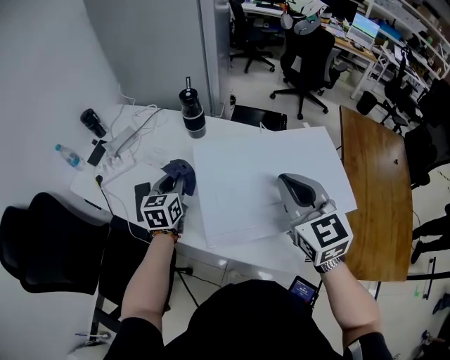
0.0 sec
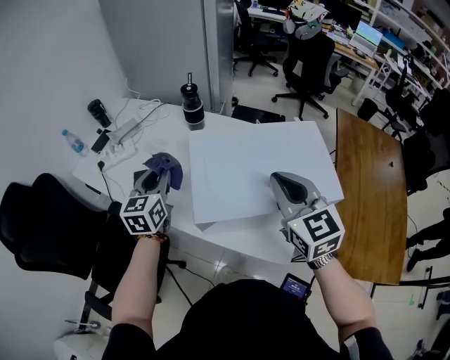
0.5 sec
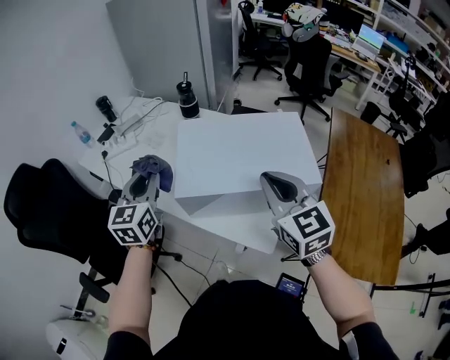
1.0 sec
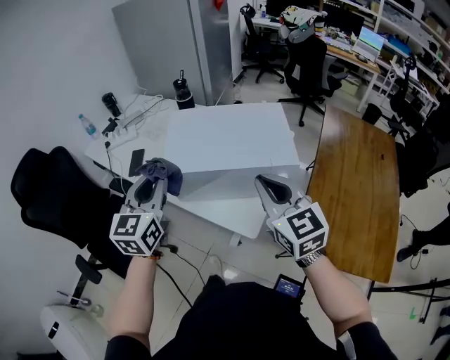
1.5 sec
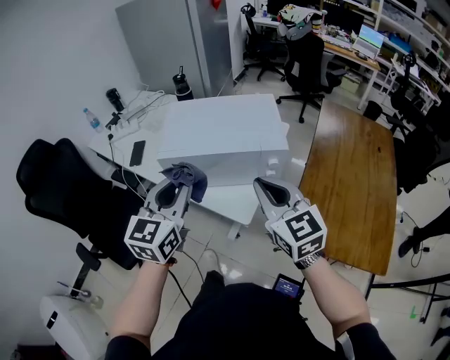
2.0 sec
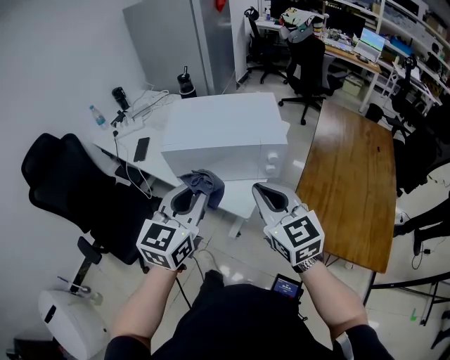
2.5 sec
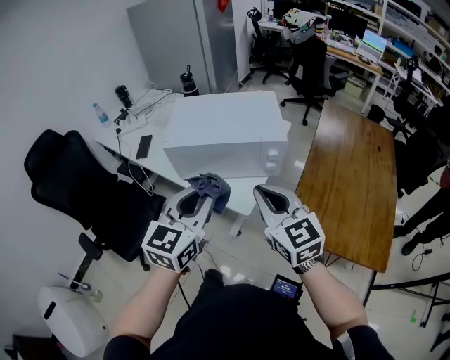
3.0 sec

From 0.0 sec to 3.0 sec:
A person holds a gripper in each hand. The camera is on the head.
From 0.0 sec to 1.5 sec: The right gripper moves backward and to the right, some 20 cm; the left gripper heads backward and upward, covering roughly 35 cm, and turns by some 20 degrees.
From 1.5 sec to 3.0 sec: The right gripper travels backward by approximately 15 cm. The left gripper shifts about 20 cm backward and to the right.

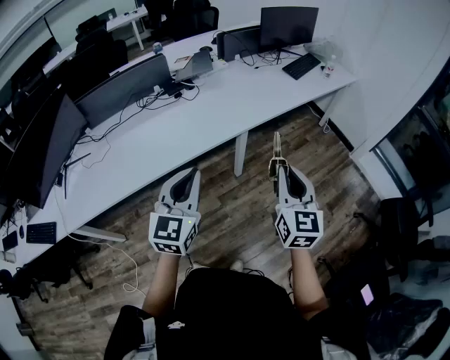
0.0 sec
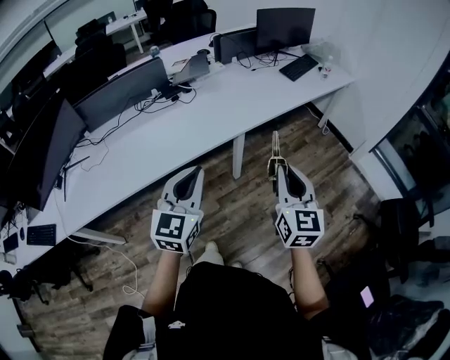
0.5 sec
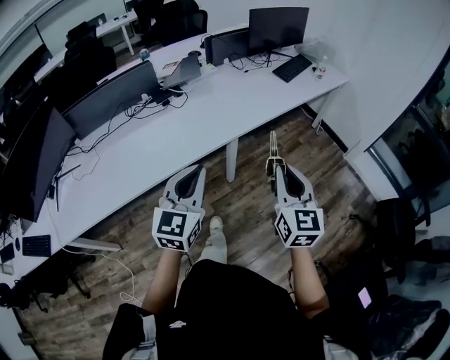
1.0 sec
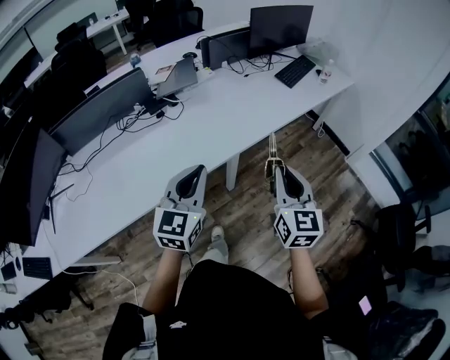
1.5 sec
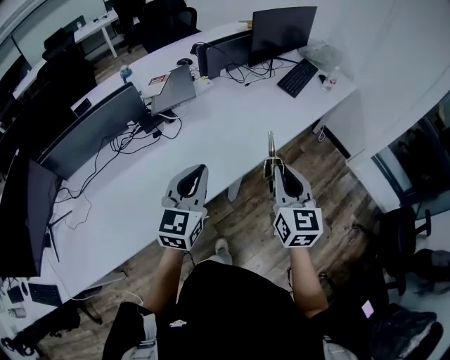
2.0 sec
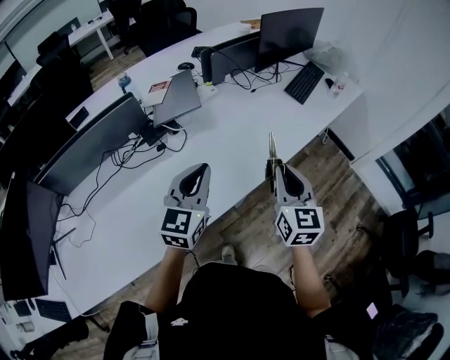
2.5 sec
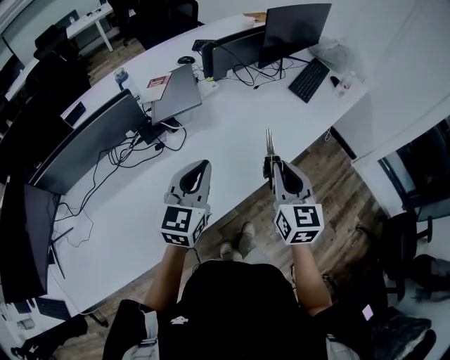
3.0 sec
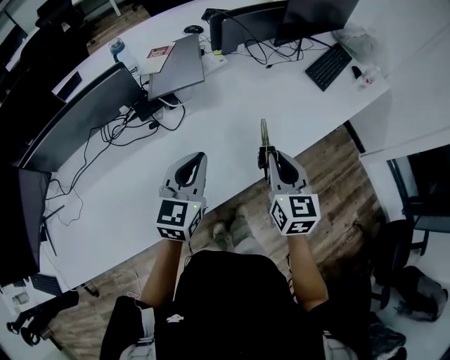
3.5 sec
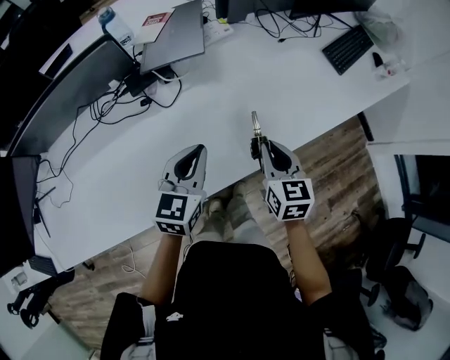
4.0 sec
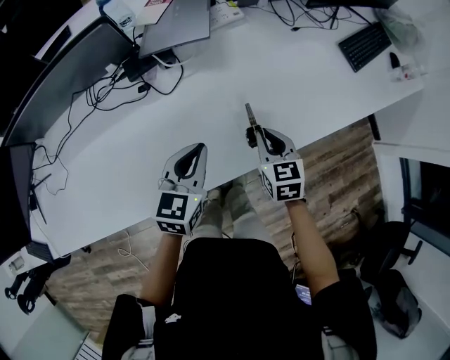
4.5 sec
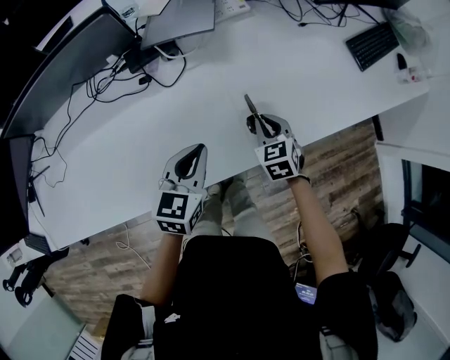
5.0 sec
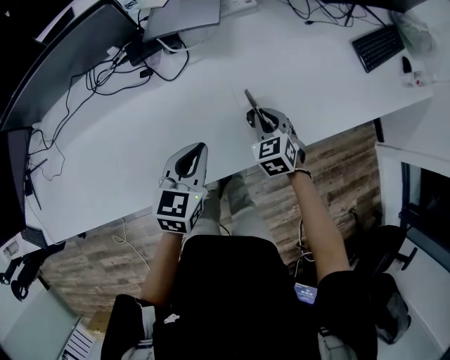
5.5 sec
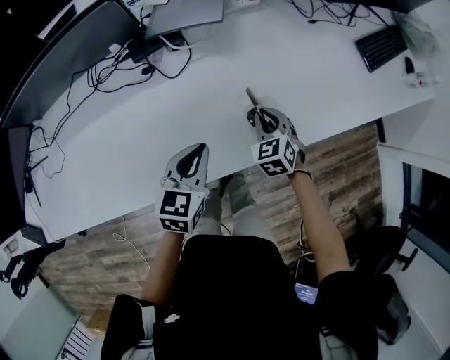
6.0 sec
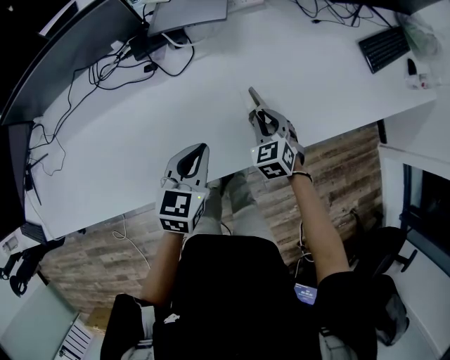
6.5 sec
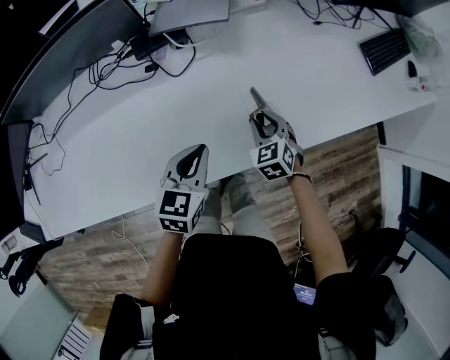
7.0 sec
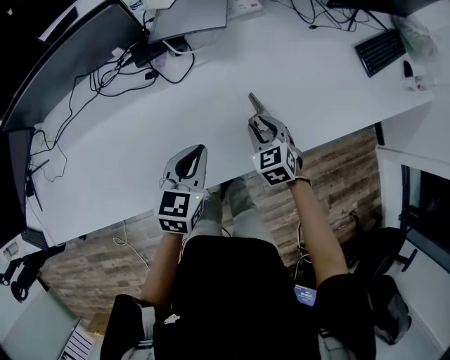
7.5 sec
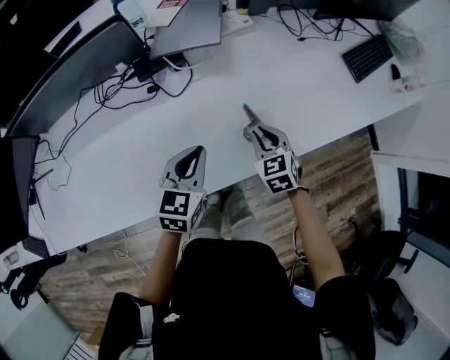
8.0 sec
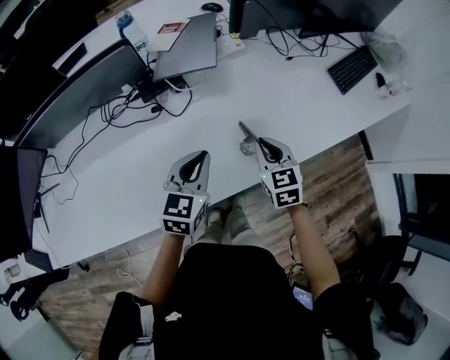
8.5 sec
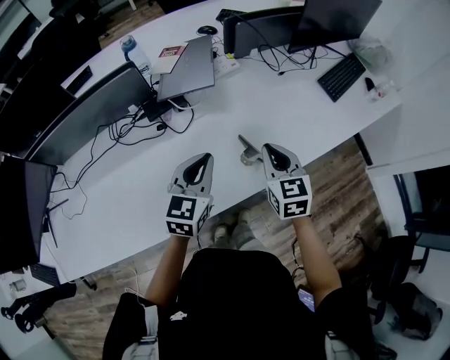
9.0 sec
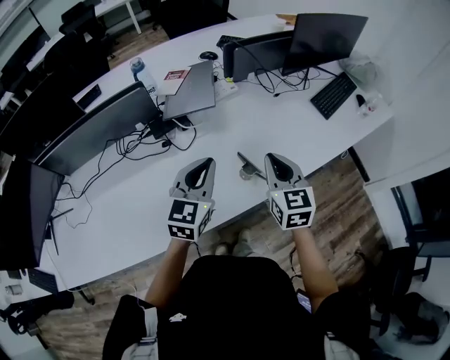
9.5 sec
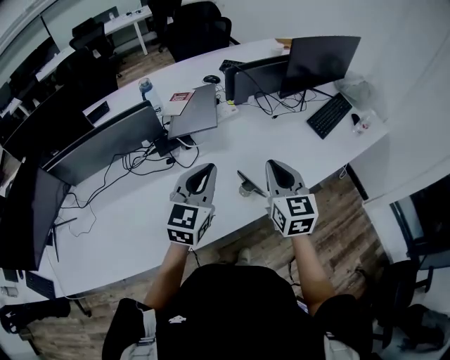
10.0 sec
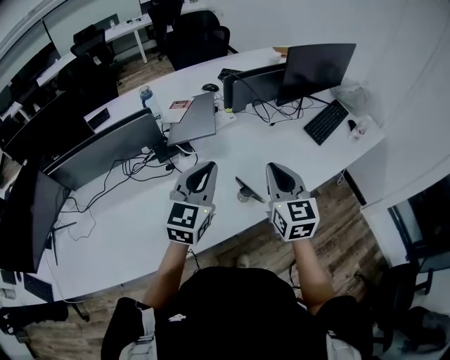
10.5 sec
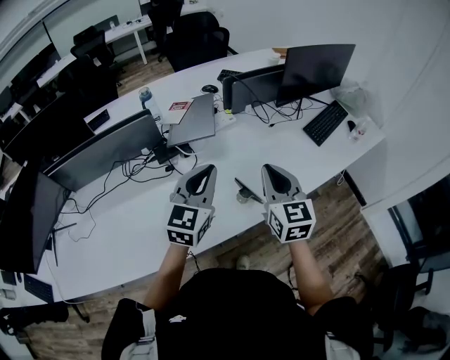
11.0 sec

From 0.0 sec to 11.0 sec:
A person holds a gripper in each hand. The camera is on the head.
From 0.0 sec to 2.0 sec: Both grippers travel together forward, approximately 30 cm.
From 2.0 sec to 3.5 sec: Both grippers travel together forward and downward, approximately 20 cm.
From 3.5 sec to 5.5 sec: The right gripper is displaced downward and forward by approximately 25 cm, and rotates approximately 50 degrees. The left gripper shifts about 15 cm downward, and swivels about 20 degrees.
From 5.5 sec to 7.5 sec: The grippers make only small movements.
From 7.5 sec to 9.0 sec: The right gripper heads upward, covering roughly 20 cm, rotates some 30 degrees, and closes; the left gripper goes some 15 cm upward.
From 9.0 sec to 11.0 sec: The two grippers go about 15 cm upward.

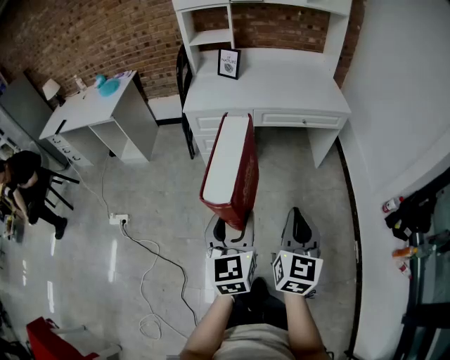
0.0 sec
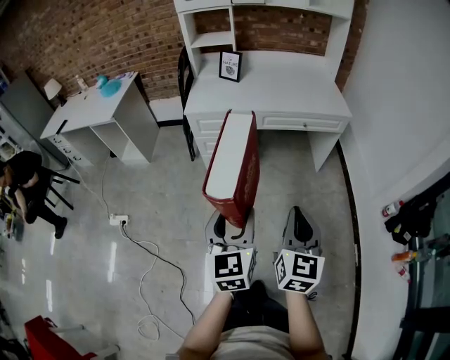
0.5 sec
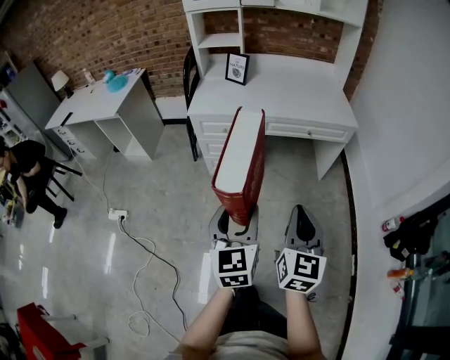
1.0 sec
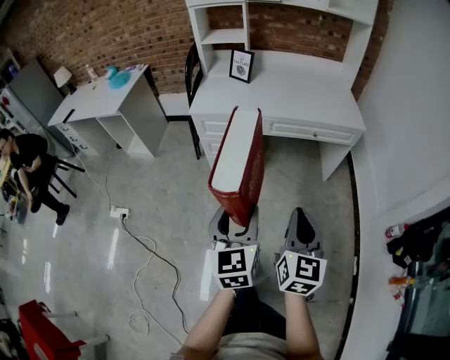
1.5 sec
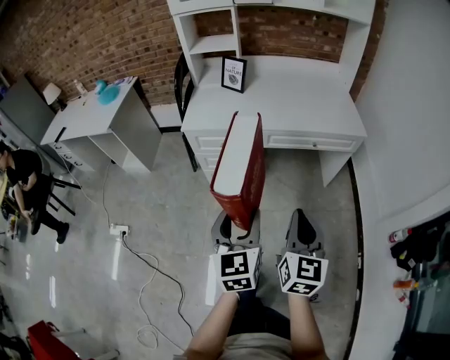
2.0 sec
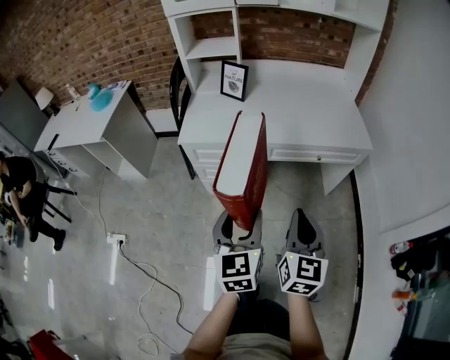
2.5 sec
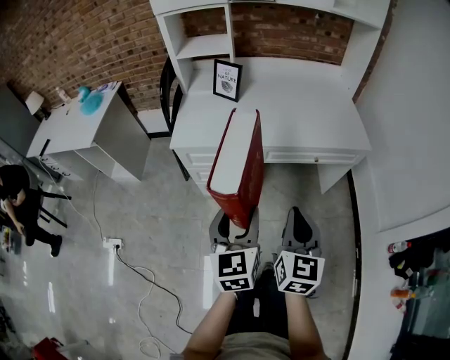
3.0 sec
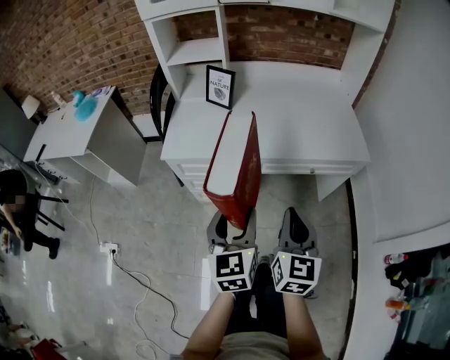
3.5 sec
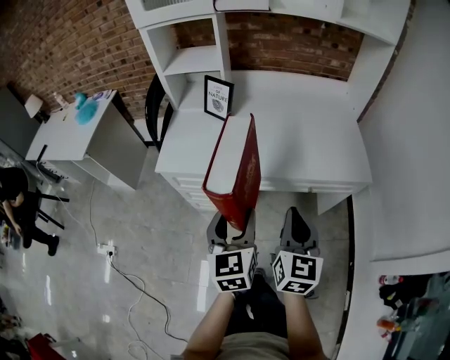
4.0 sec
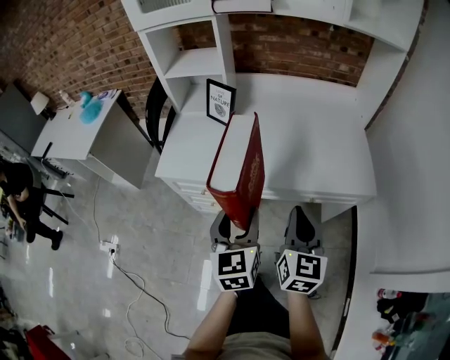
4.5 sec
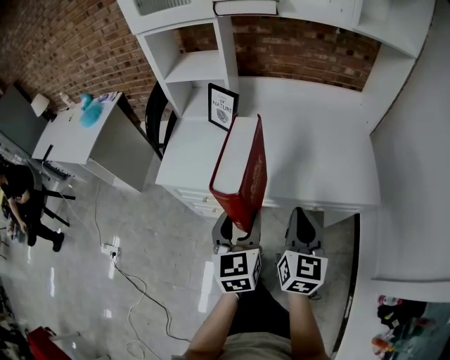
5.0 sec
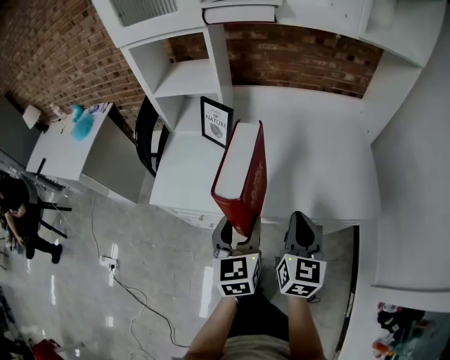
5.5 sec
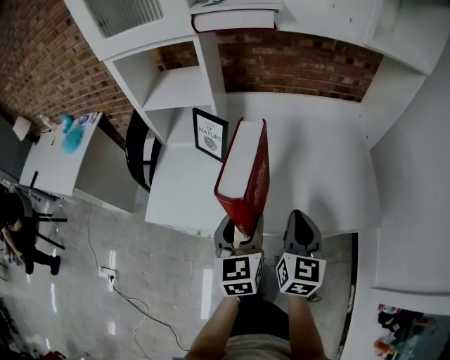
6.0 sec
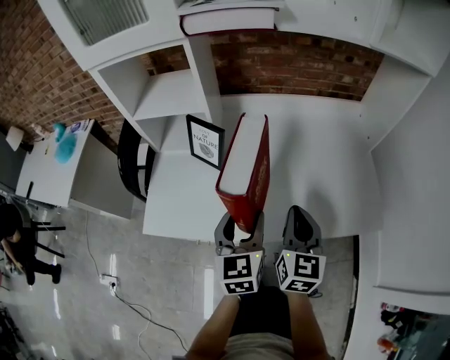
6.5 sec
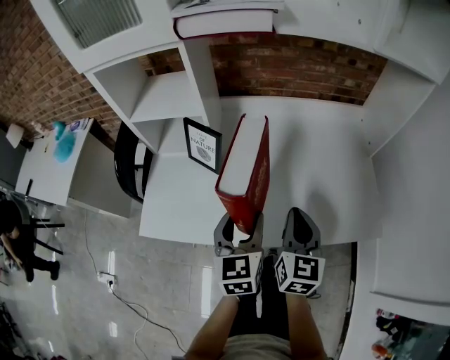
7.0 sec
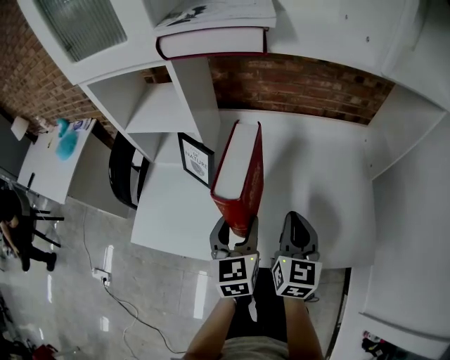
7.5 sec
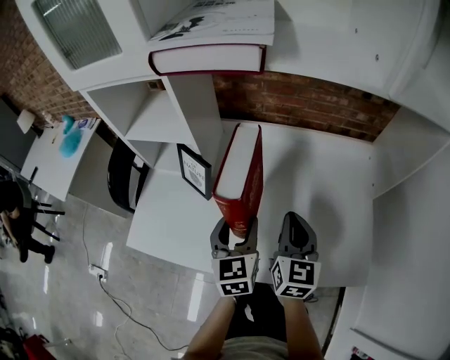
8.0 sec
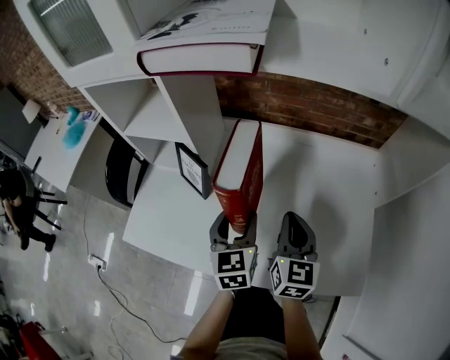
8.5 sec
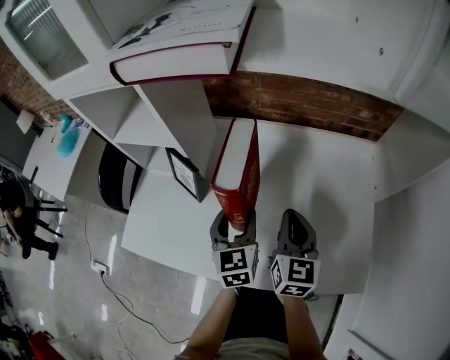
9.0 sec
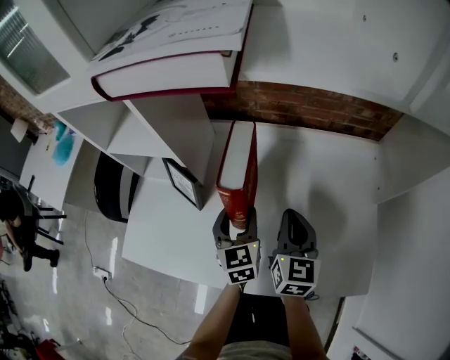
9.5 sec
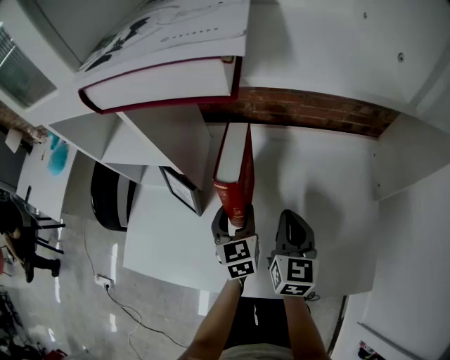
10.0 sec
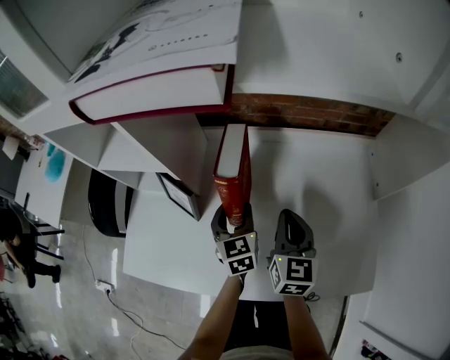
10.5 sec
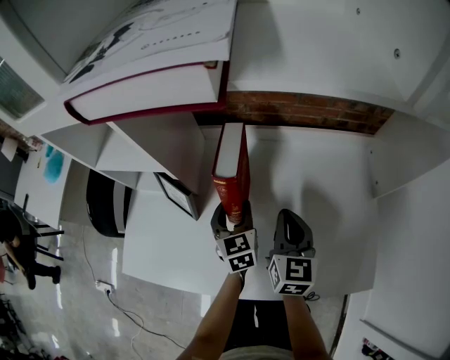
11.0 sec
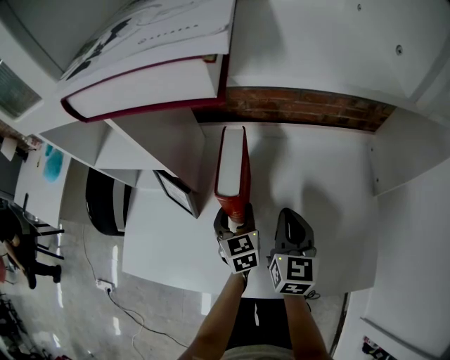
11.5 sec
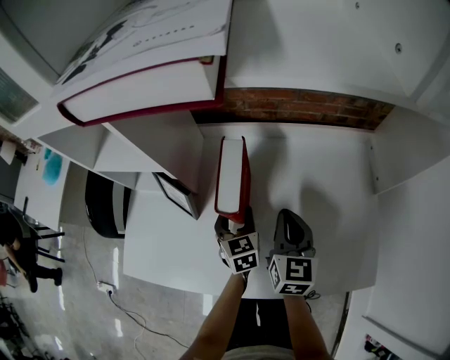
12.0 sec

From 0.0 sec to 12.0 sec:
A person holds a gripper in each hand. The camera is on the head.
From 0.0 sec to 2.0 sec: The grippers both shift forward by approximately 15 cm.
From 2.0 sec to 4.0 sec: Both grippers travel together forward, roughly 30 cm.
From 4.0 sec to 6.0 sec: Both grippers move forward, about 20 cm.
From 6.0 sec to 8.0 sec: The grippers both shift forward by approximately 20 cm.
From 8.0 sec to 10.0 sec: The right gripper heads forward, covering some 10 cm; the left gripper heads forward and downward, covering approximately 15 cm.
From 10.0 sec to 12.0 sec: The left gripper goes approximately 5 cm downward.

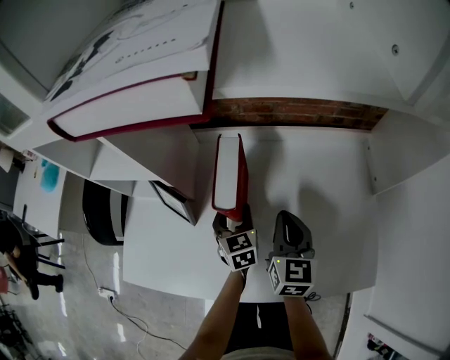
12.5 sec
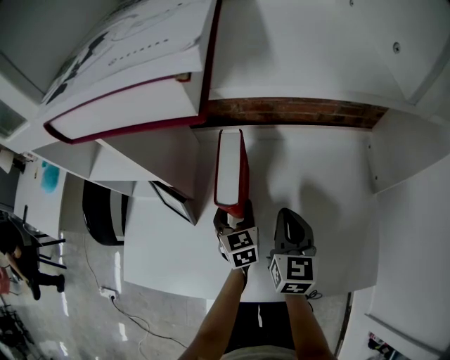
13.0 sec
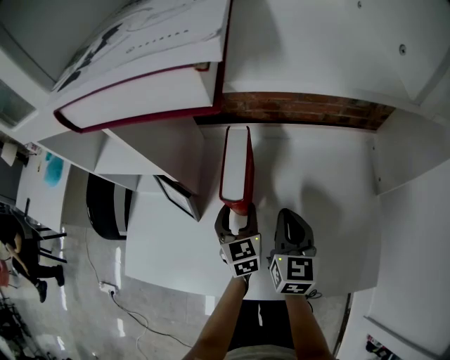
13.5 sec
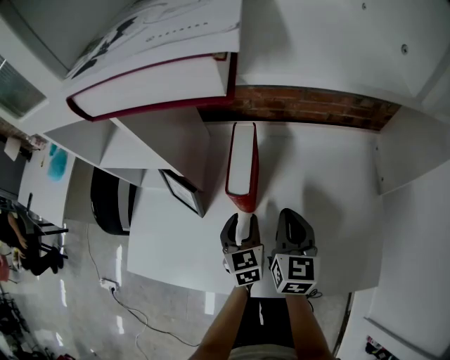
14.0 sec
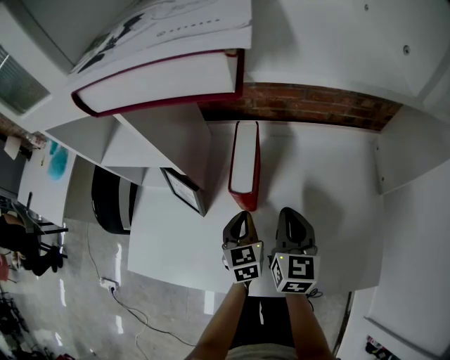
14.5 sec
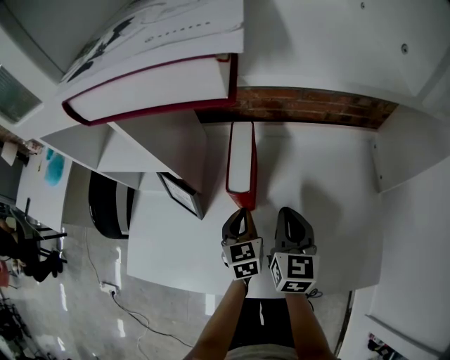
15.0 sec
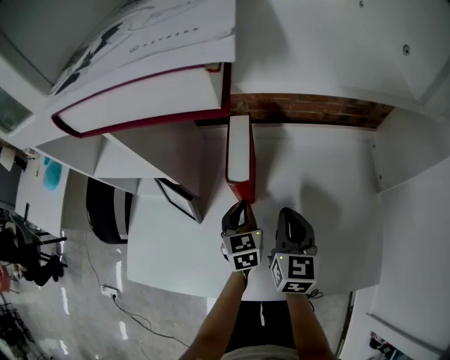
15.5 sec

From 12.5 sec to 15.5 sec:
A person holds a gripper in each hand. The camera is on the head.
From 12.5 sec to 14.0 sec: The left gripper heads backward, covering some 5 cm.
From 14.0 sec to 15.5 sec: The left gripper is displaced forward by approximately 5 cm, and closes its fingers.
